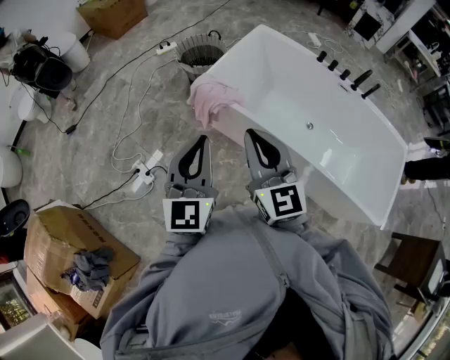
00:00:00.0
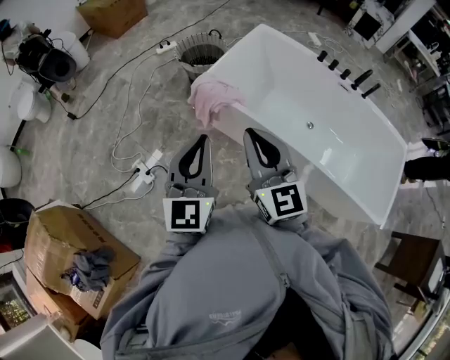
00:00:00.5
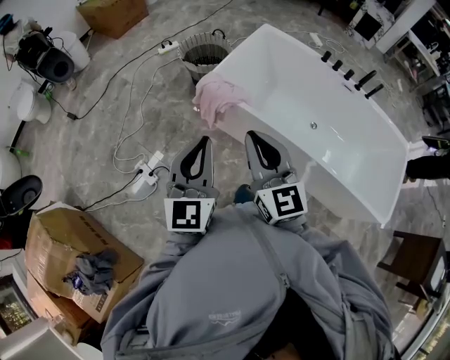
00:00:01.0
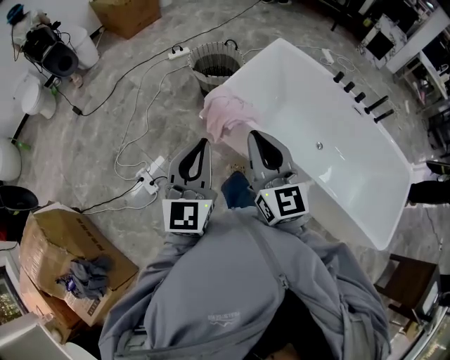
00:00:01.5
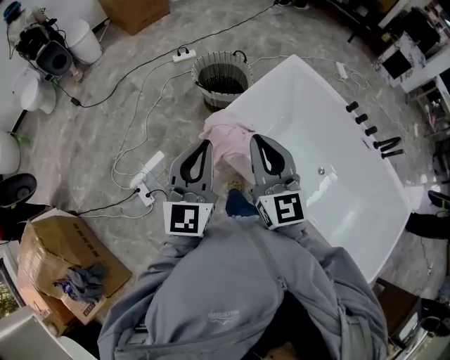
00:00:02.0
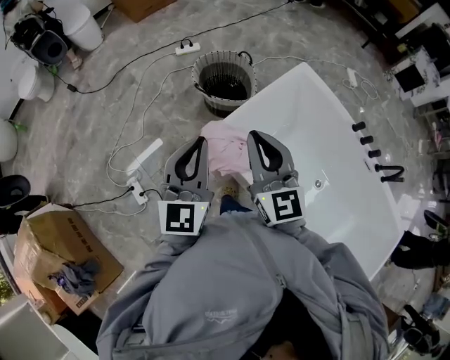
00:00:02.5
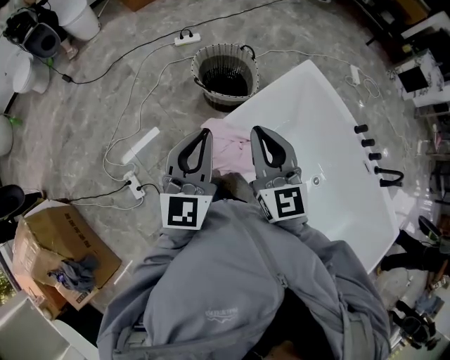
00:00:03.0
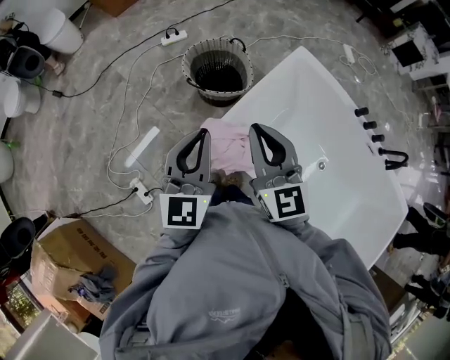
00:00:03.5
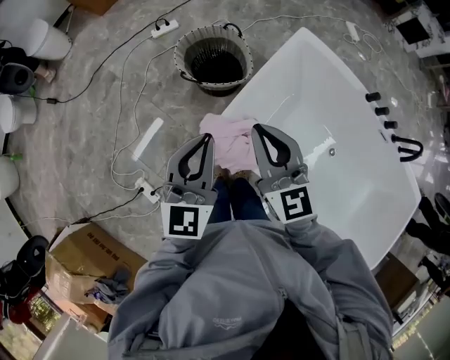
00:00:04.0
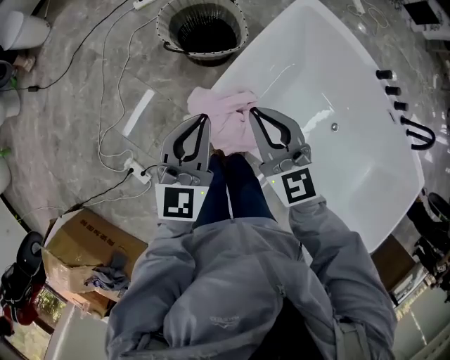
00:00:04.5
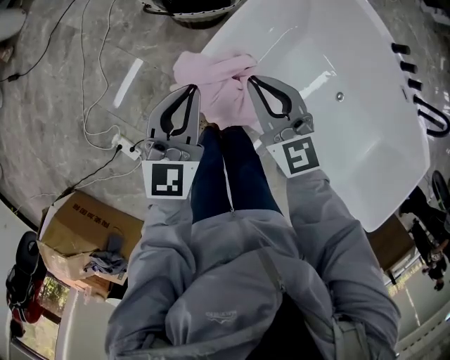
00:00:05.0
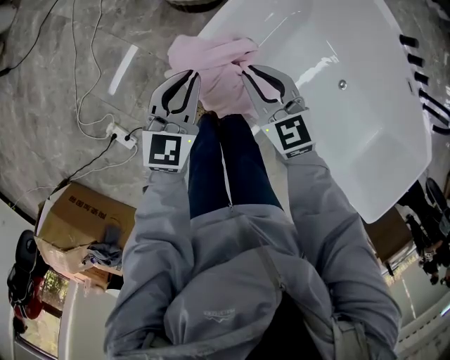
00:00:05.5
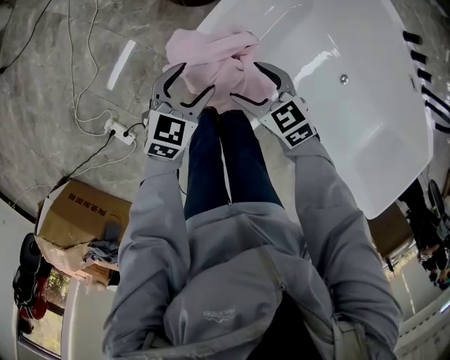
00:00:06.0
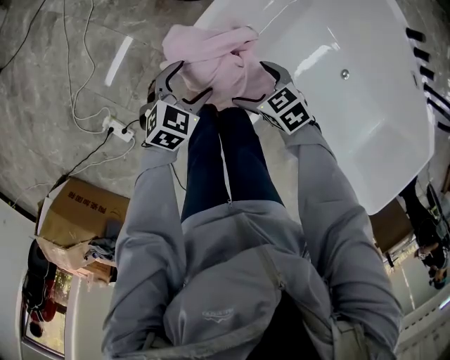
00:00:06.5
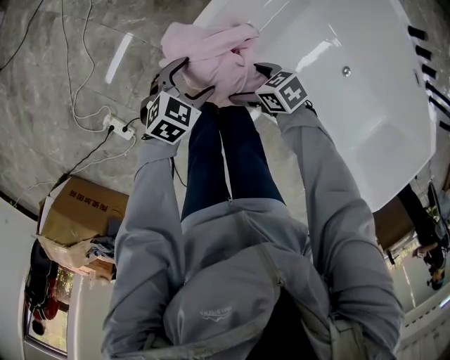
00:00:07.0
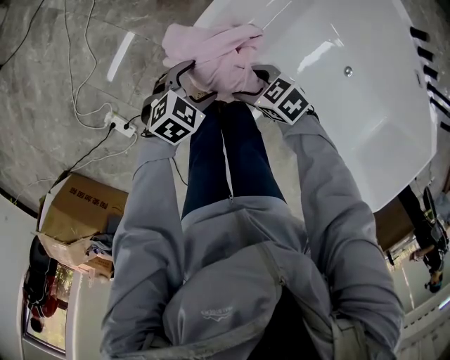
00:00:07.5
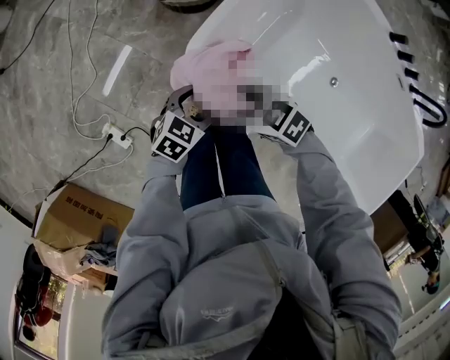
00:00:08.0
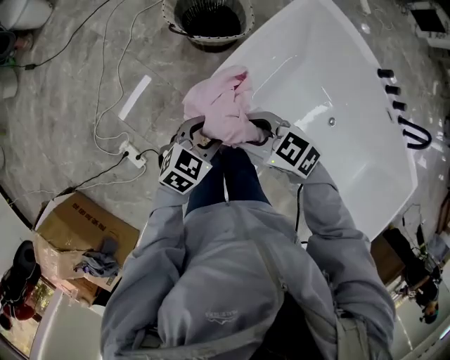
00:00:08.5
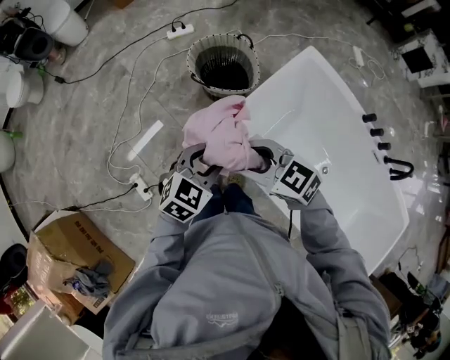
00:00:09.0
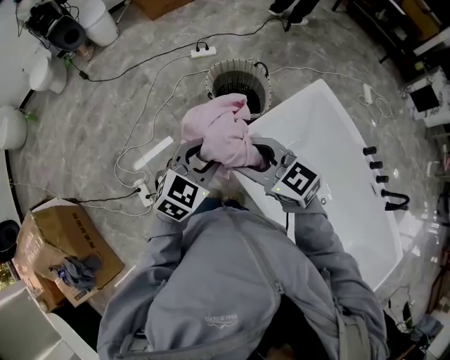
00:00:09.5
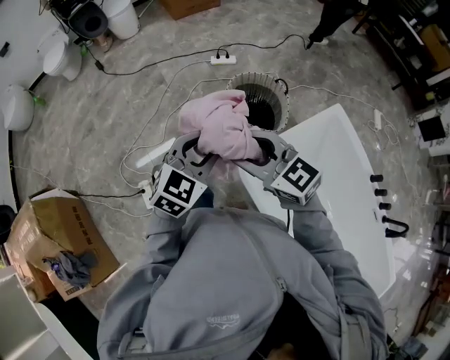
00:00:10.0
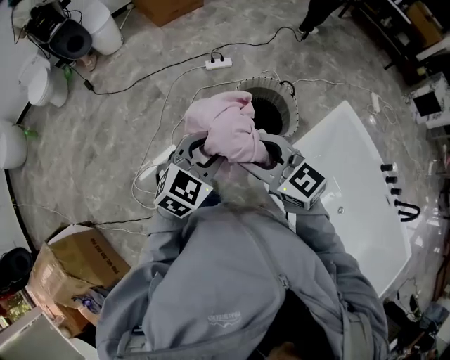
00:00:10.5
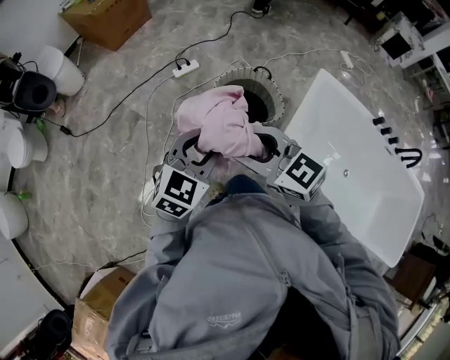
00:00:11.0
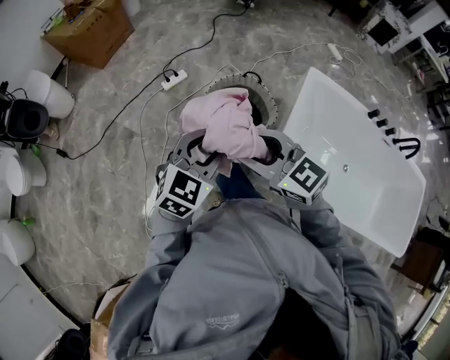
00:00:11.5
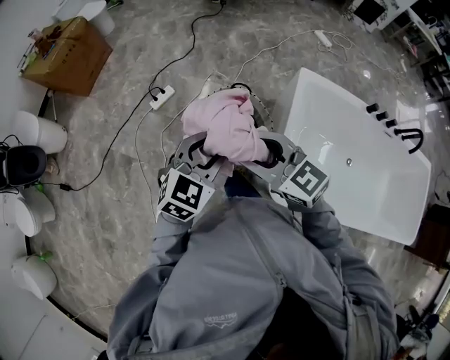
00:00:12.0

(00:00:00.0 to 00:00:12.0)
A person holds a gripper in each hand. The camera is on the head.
00:00:00.0 - 00:00:02.0: Both grippers move forward, about 25 cm.
00:00:02.0 - 00:00:04.0: Both grippers travel together forward and downward, some 25 cm.
00:00:04.0 - 00:00:06.0: Both grippers travel together downward, about 35 cm. The right gripper points its fingers approximately 40 degrees further downward, and opens, while the left gripper points its fingers about 30 degrees further downward, and opens its fingers.
00:00:06.0 - 00:00:08.0: The right gripper moves approximately 10 cm downward and comes back, changes its angle by some 20 degrees, and closes. The left gripper changes place by approximately 5 cm.
00:00:08.0 - 00:00:10.0: Both grippers travel together upward, approximately 40 cm. The left gripper turns by approximately 40 degrees, and closes up. Meanwhile the right gripper turns by approximately 40 degrees.
00:00:10.0 - 00:00:12.0: The left gripper ends up about 25 cm from where it was, and swivels roughly 40 degrees. The right gripper shifts by roughly 25 cm, and swivels some 40 degrees.

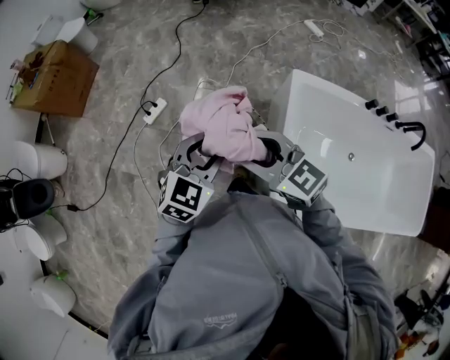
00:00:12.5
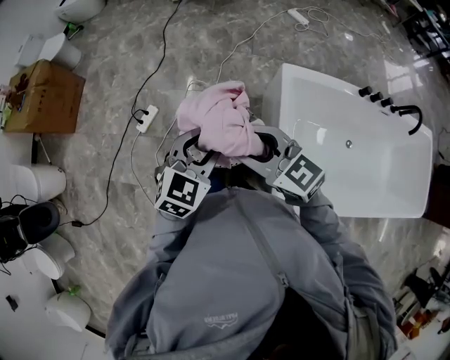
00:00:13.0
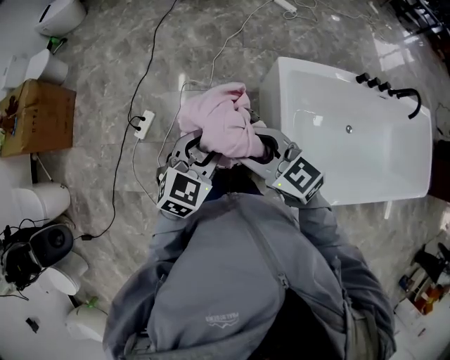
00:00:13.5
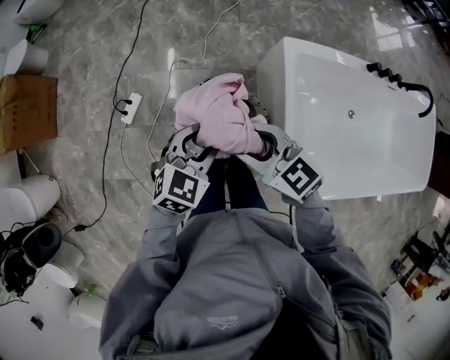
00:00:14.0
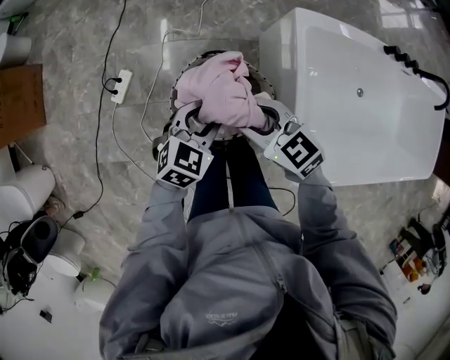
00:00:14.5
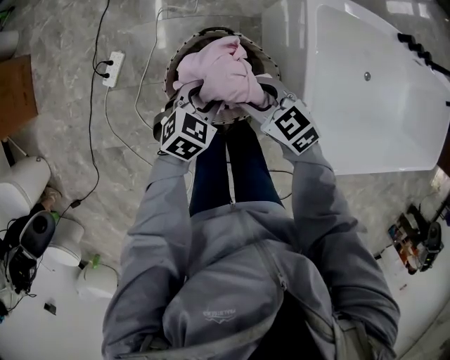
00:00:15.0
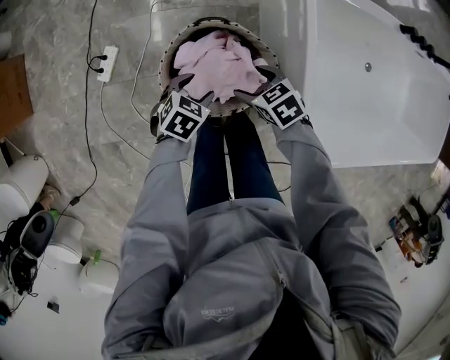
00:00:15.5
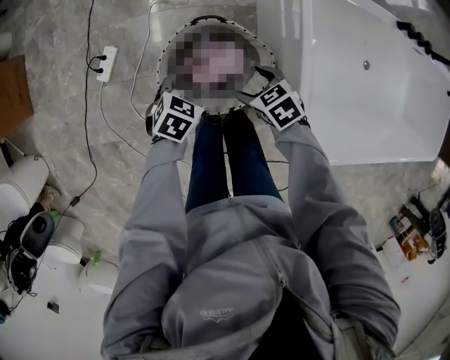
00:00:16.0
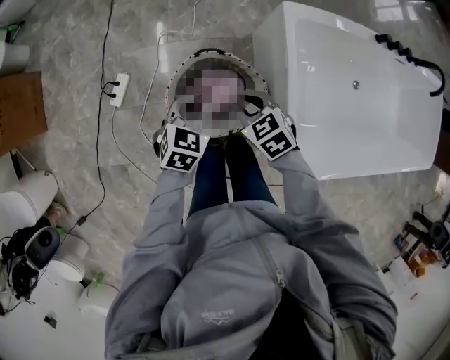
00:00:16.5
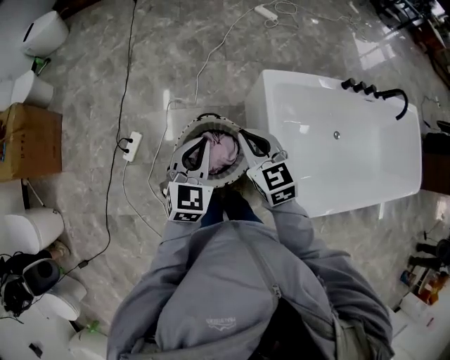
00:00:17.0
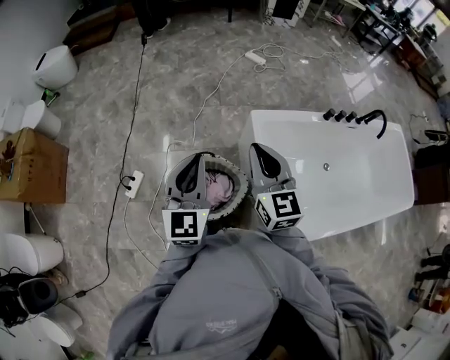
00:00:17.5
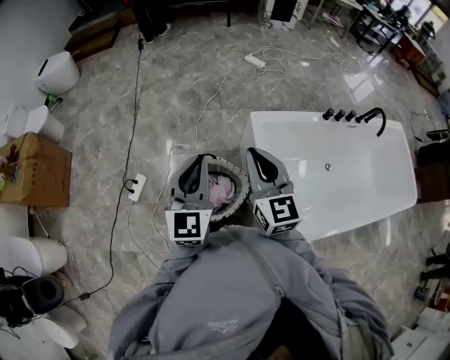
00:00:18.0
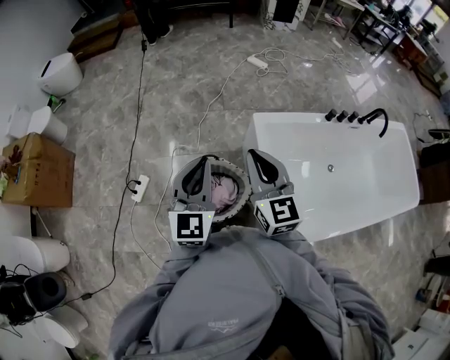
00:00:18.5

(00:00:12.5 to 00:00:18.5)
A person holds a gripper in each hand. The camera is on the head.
00:00:12.5 - 00:00:14.5: The grippers both shift downward and forward by roughly 25 cm. The left gripper swivels some 20 degrees. The right gripper changes its angle by approximately 20 degrees.
00:00:14.5 - 00:00:16.5: The left gripper travels downward and back again, roughly 15 cm each way, while the right gripper shifts roughly 10 cm downward, swivels some 20 degrees, and opens and closes again.
00:00:16.5 - 00:00:18.5: Both grippers move upward, roughly 35 cm. The right gripper angles its fingers upward, by approximately 40 degrees; the left gripper points its fingers roughly 40 degrees further upward.
